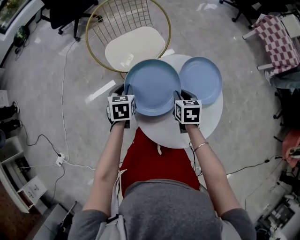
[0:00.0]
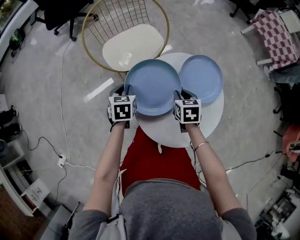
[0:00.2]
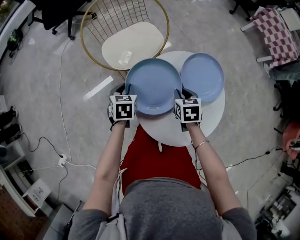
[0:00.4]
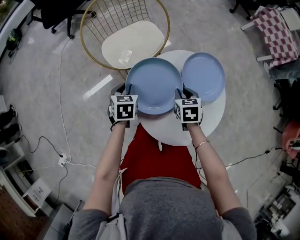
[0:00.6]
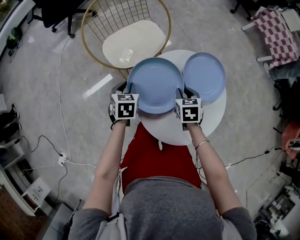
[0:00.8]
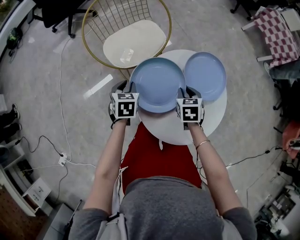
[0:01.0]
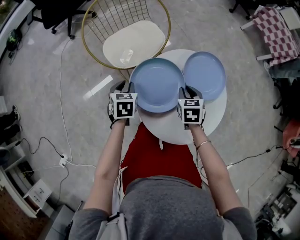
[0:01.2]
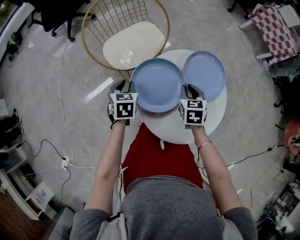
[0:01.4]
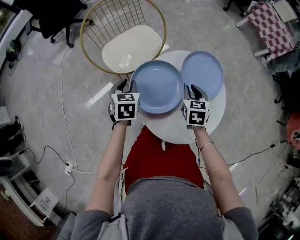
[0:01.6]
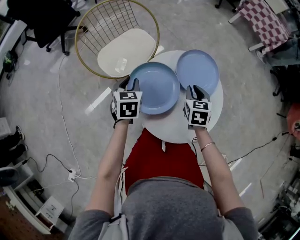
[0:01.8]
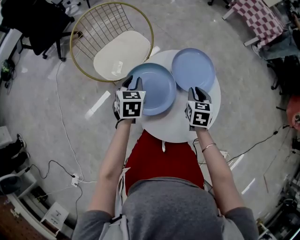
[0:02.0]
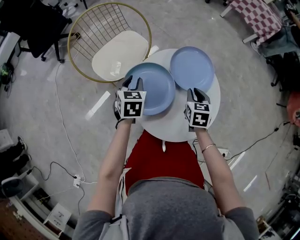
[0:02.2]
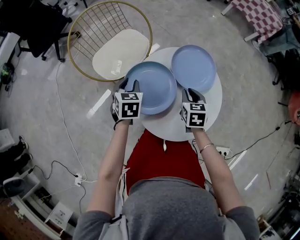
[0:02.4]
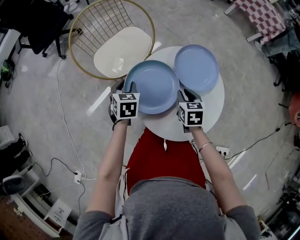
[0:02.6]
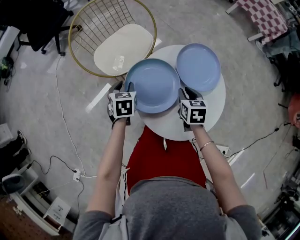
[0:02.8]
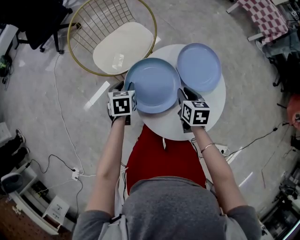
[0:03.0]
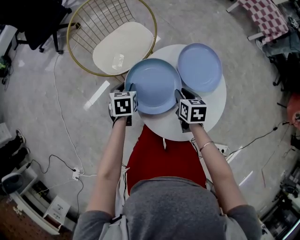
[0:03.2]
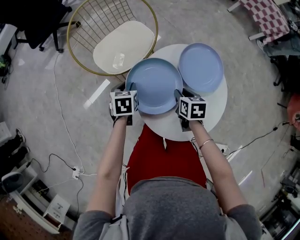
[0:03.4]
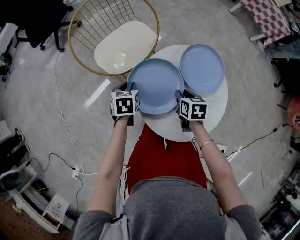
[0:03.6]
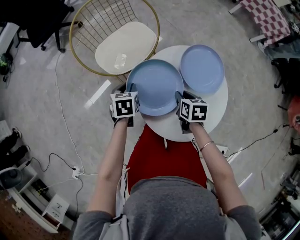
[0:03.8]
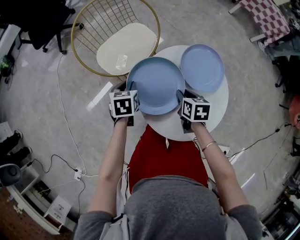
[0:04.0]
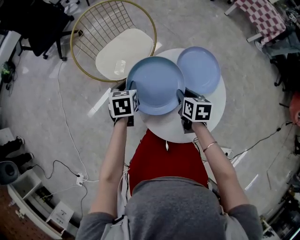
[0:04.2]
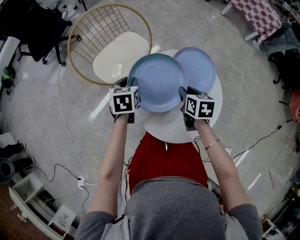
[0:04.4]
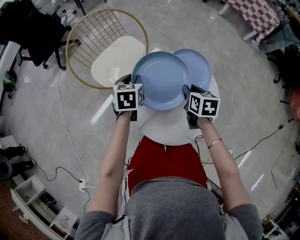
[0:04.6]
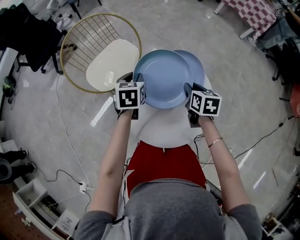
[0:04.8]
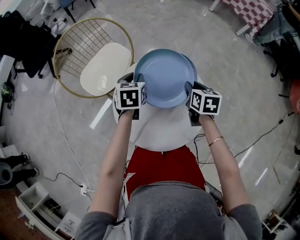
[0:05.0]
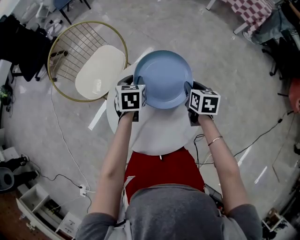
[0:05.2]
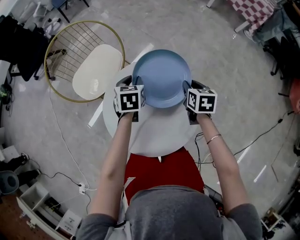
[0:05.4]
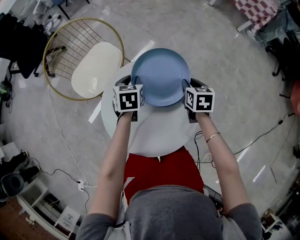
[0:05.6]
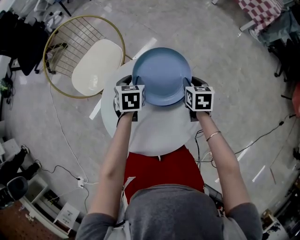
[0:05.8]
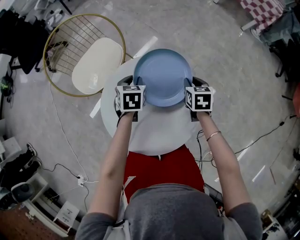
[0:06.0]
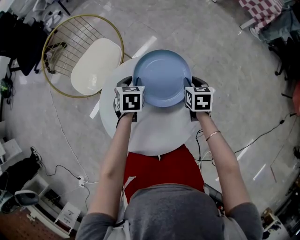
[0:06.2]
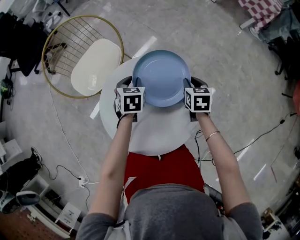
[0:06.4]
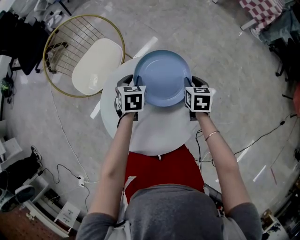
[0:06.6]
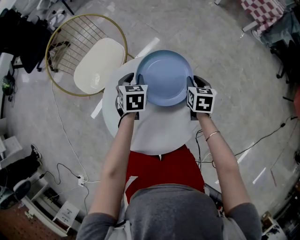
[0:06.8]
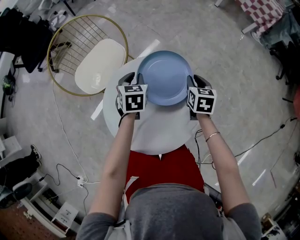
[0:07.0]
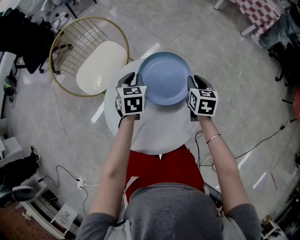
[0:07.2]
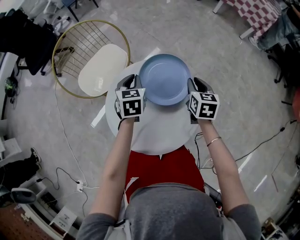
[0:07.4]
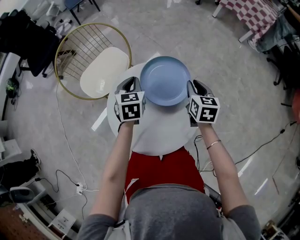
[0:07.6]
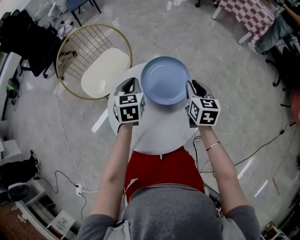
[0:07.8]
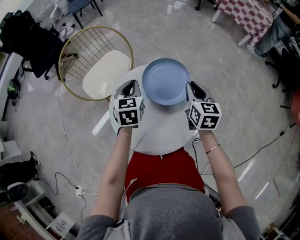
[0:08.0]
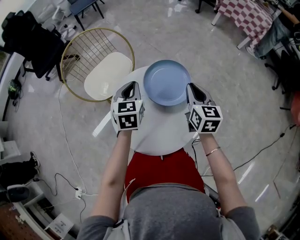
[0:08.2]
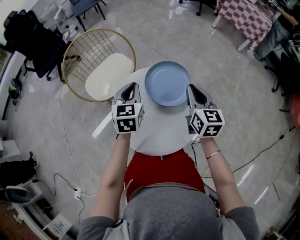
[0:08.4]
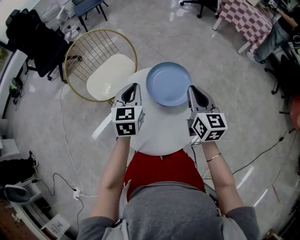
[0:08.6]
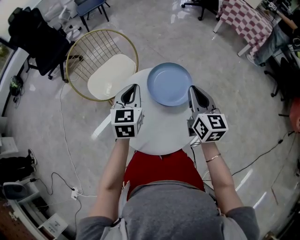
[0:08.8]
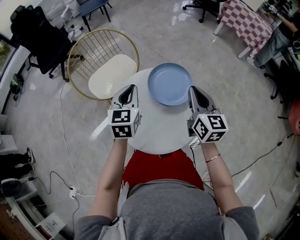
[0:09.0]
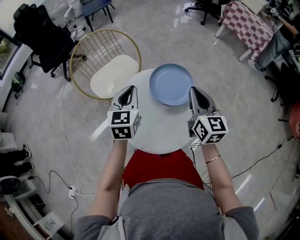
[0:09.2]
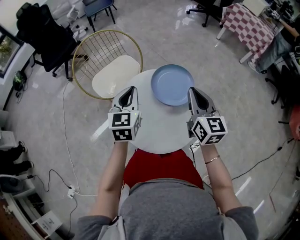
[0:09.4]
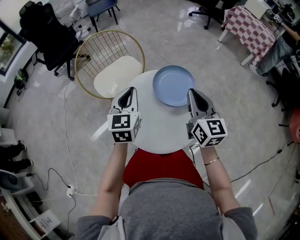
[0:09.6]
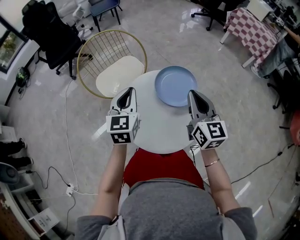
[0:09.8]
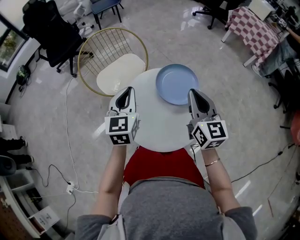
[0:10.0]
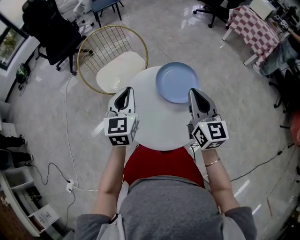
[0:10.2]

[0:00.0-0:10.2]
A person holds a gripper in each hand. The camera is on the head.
0.0 to 1.4 s: There are only small adjustments of the grippers.
1.4 to 3.0 s: The right gripper reaches approximately 10 cm to the right, then returns.
3.0 to 4.4 s: The left gripper goes some 5 cm upward.
4.4 to 5.8 s: Both grippers travel together to the right and forward, approximately 20 cm.
5.8 to 7.2 s: The grippers stay close to where they were, moving slightly.
7.2 to 8.8 s: The two grippers go about 20 cm upward and backward. The left gripper swivels about 20 degrees, while the right gripper rotates approximately 30 degrees.
8.8 to 10.2 s: The right gripper ends up approximately 5 cm from where it was, while the left gripper shifts roughly 10 cm to the left and backward.

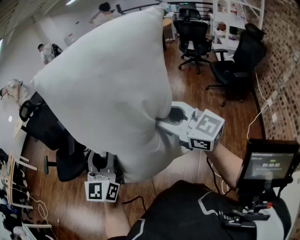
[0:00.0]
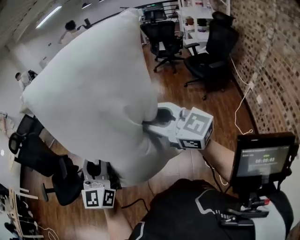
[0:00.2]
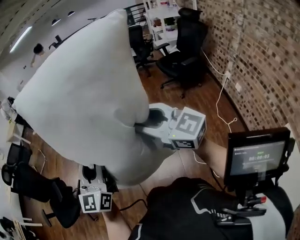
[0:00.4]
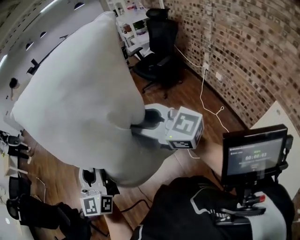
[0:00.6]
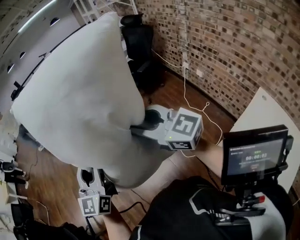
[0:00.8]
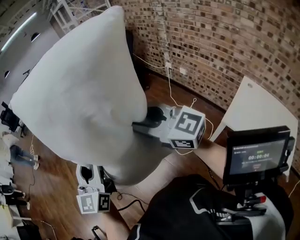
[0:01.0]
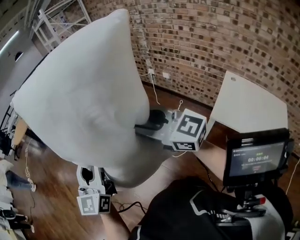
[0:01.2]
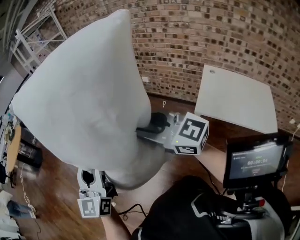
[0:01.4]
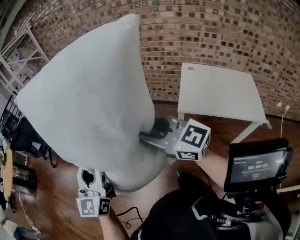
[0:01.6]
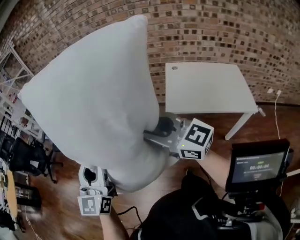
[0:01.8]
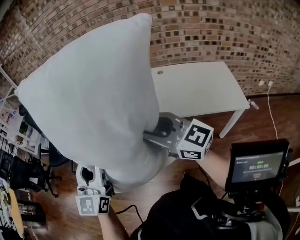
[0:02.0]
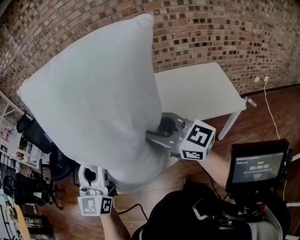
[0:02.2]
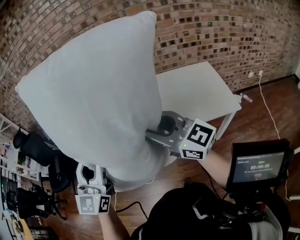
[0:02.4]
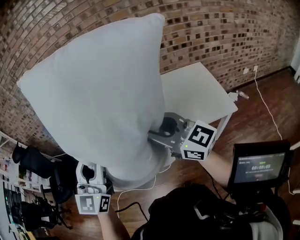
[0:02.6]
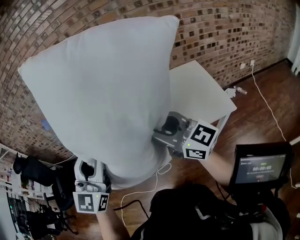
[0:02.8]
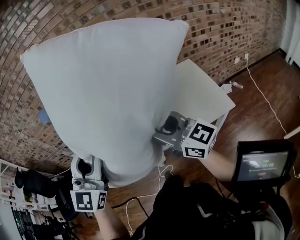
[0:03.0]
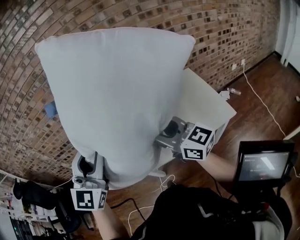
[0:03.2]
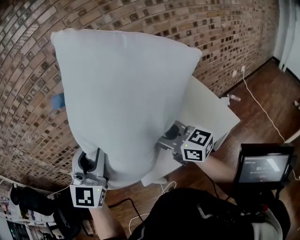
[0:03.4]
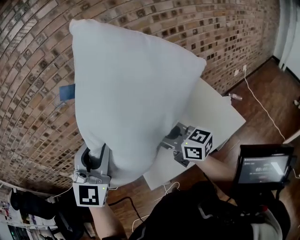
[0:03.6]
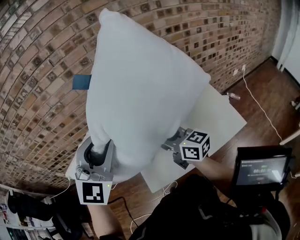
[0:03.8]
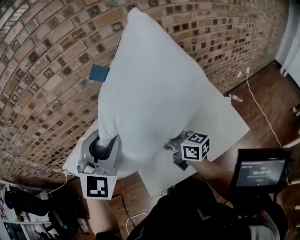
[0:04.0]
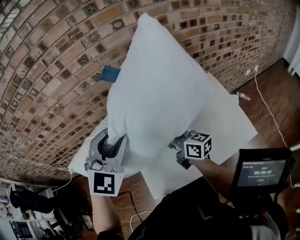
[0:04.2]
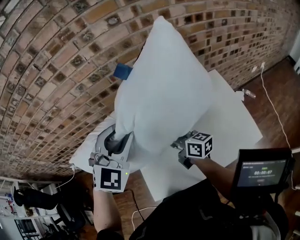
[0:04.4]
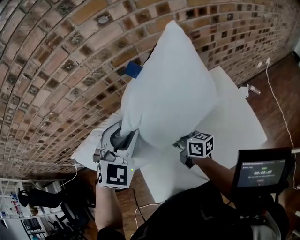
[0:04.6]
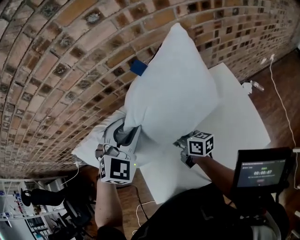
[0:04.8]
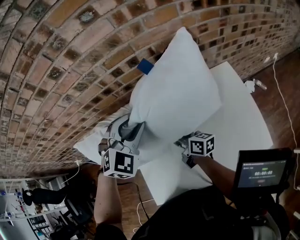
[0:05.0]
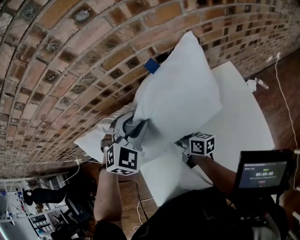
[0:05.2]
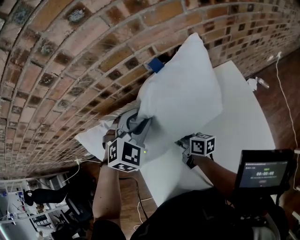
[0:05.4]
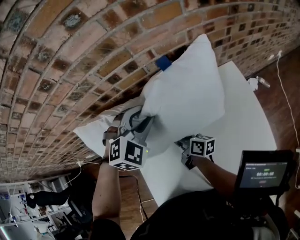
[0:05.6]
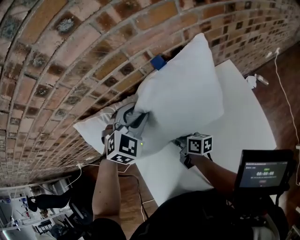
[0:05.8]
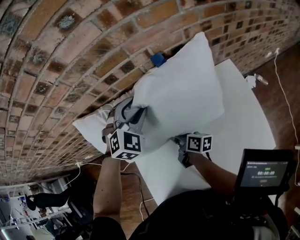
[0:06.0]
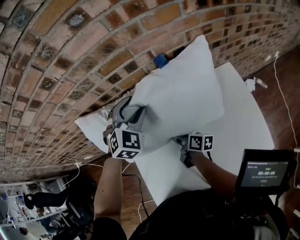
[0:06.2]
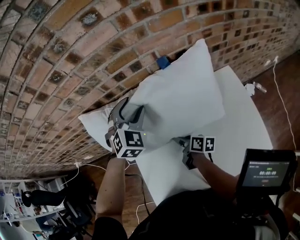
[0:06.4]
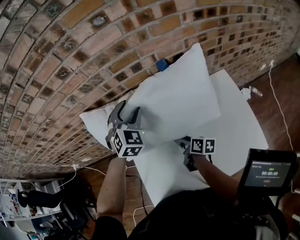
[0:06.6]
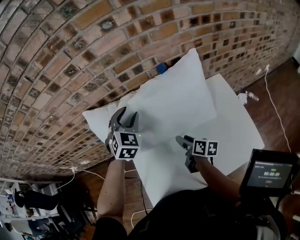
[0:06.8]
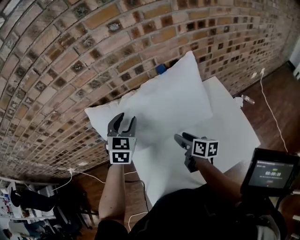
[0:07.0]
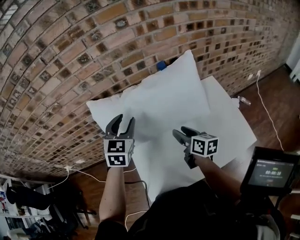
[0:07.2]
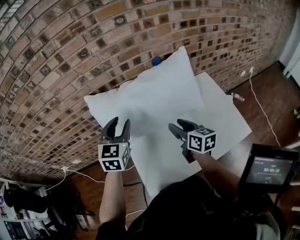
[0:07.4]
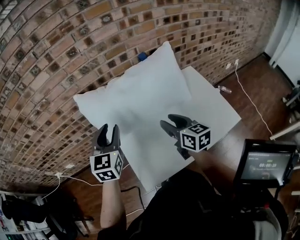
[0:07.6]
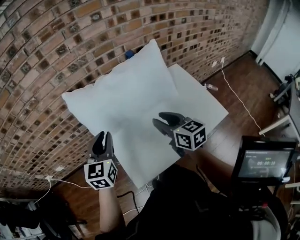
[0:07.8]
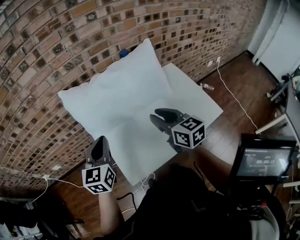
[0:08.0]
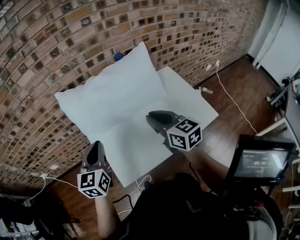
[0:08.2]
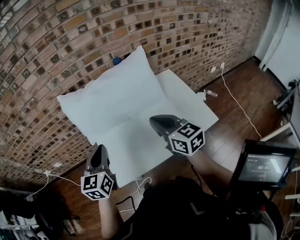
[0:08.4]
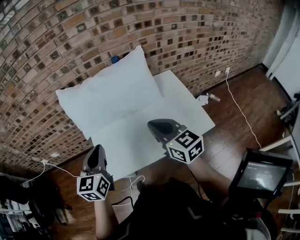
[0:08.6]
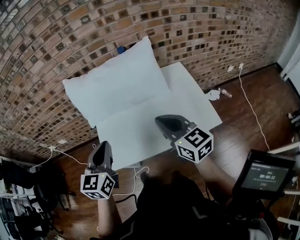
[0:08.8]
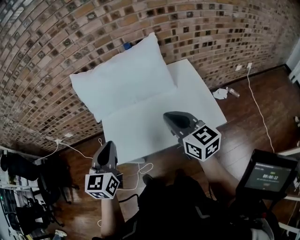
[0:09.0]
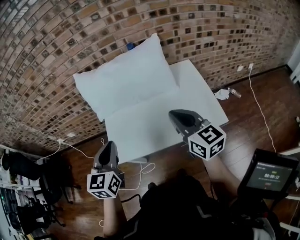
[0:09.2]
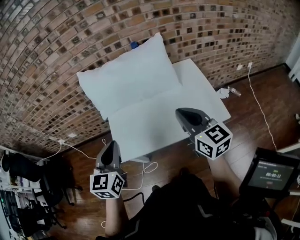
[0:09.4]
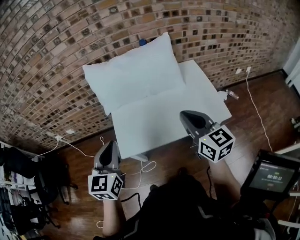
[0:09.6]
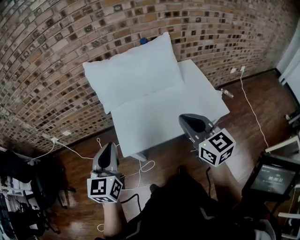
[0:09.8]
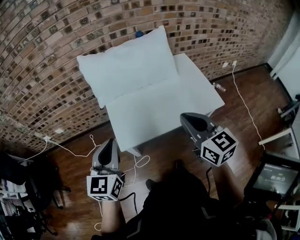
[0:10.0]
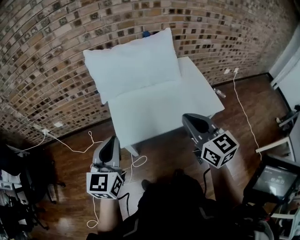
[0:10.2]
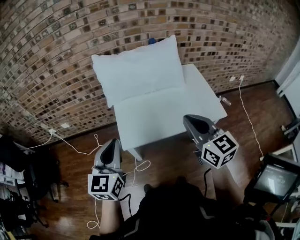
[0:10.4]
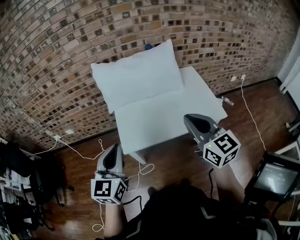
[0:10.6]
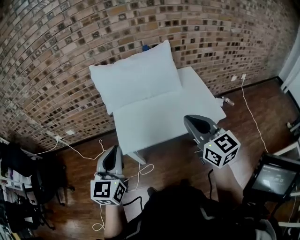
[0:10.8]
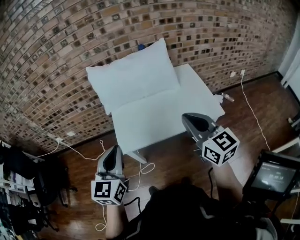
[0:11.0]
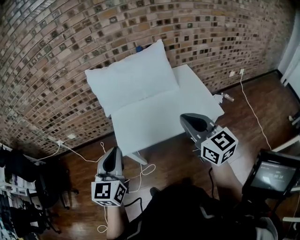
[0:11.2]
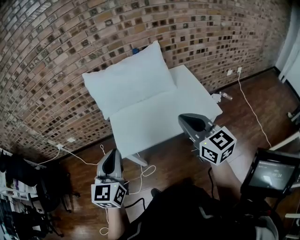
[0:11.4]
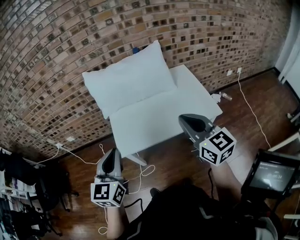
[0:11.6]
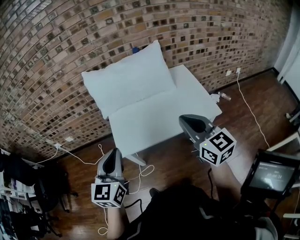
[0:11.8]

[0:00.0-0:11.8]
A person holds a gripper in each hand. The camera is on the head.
0.0 to 1.4 s: The right gripper shifts by roughly 30 cm, and turns by roughly 60 degrees; the left gripper ends up approximately 35 cm from where it was, and changes its angle by about 60 degrees.
1.4 to 3.0 s: The pair of grippers is taken approximately 60 cm. The right gripper changes its angle by roughly 50 degrees. The left gripper turns by some 60 degrees.
3.0 to 4.4 s: The right gripper moves forward and downward, roughly 40 cm, and rotates some 40 degrees. The left gripper travels forward by roughly 35 cm, and changes its angle by approximately 30 degrees.
4.4 to 6.0 s: The left gripper travels forward and downward by about 25 cm; the right gripper goes roughly 20 cm downward and forward, and turns by roughly 30 degrees.
6.0 to 7.4 s: The right gripper is displaced upward and backward by some 20 cm, and rotates some 40 degrees. Meanwhile the left gripper travels backward, to the left and upward by about 20 cm, and rolls counterclockwise, seen from behind, by roughly 40 degrees.
7.4 to 8.8 s: The right gripper moves backward, to the right and upward, some 25 cm, changes its angle by some 30 degrees, and closes up. The left gripper heads backward, covering roughly 25 cm, and closes.
8.8 to 10.4 s: The right gripper goes some 15 cm backward and to the left. Meanwhile the left gripper is displaced to the left and backward by some 20 cm.
10.4 to 11.8 s: The grippers both shift to the right by approximately 5 cm.

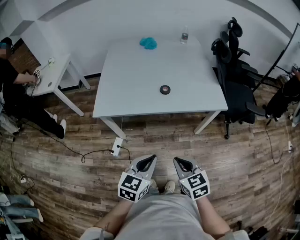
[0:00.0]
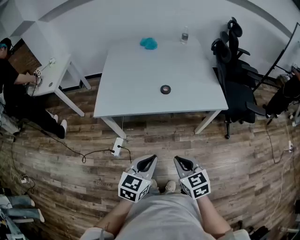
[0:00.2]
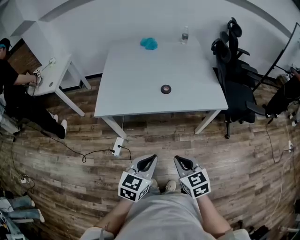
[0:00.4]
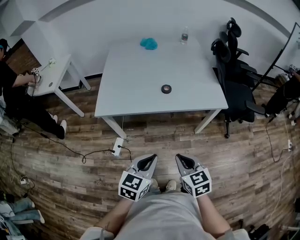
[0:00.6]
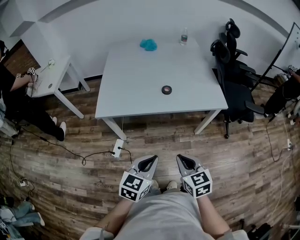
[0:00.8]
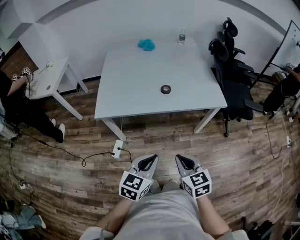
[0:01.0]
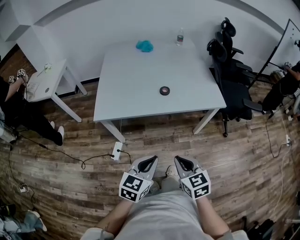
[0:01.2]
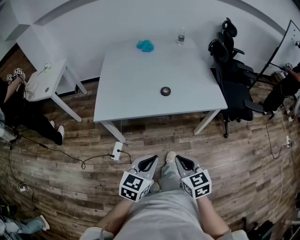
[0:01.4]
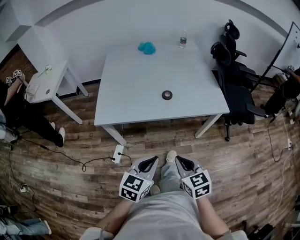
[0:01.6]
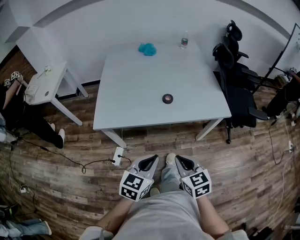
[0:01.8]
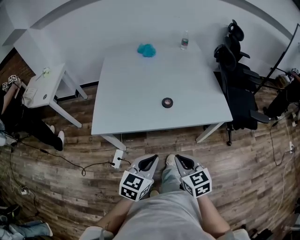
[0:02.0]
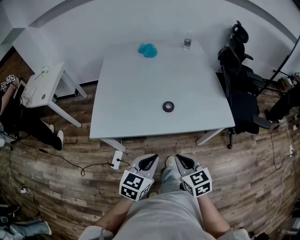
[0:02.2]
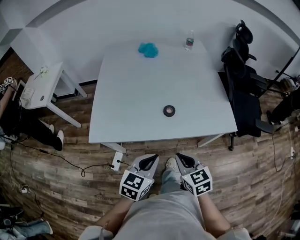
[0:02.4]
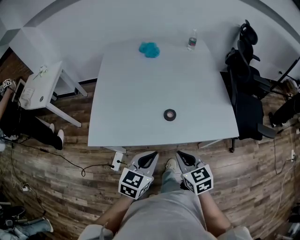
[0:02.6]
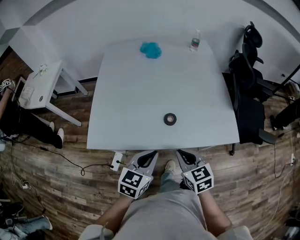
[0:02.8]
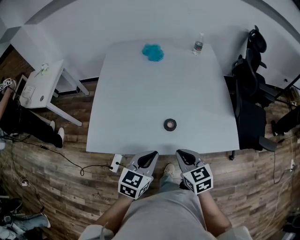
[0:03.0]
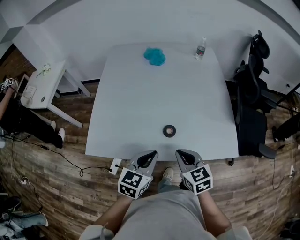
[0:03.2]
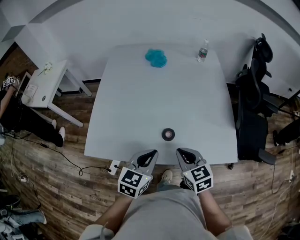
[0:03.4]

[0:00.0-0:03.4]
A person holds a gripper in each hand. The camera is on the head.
0.0 to 1.6 s: The grippers make only small movements.
1.6 to 3.4 s: The two grippers go roughly 35 cm forward.
